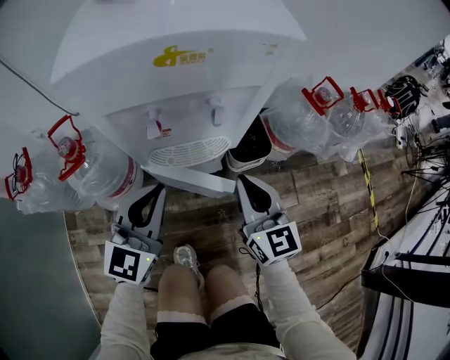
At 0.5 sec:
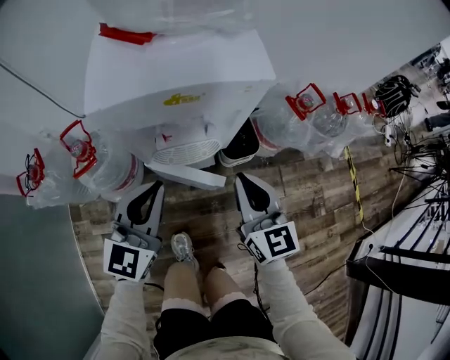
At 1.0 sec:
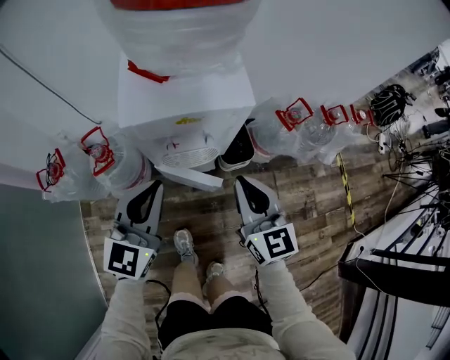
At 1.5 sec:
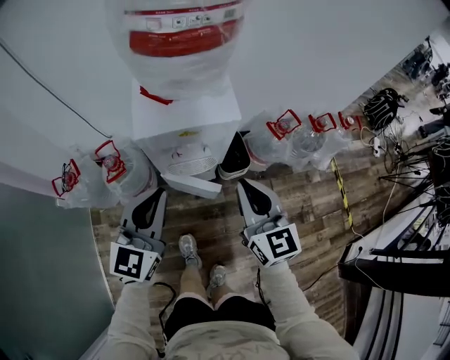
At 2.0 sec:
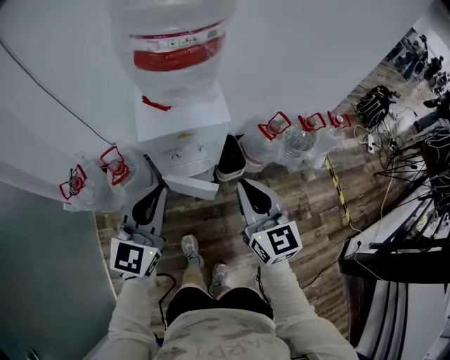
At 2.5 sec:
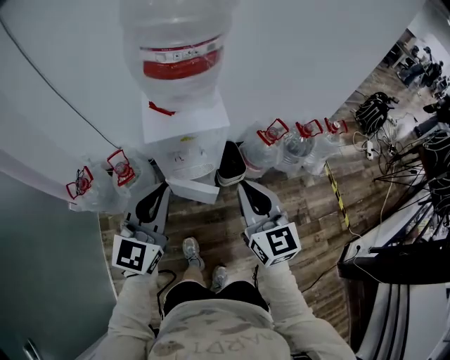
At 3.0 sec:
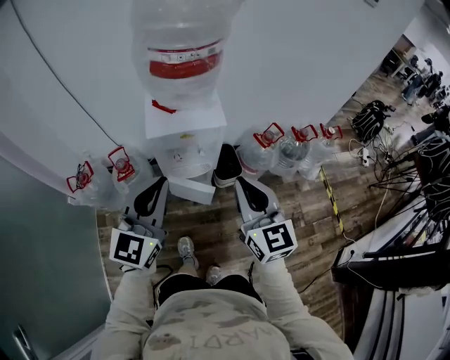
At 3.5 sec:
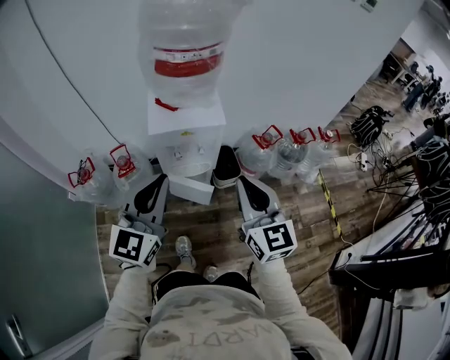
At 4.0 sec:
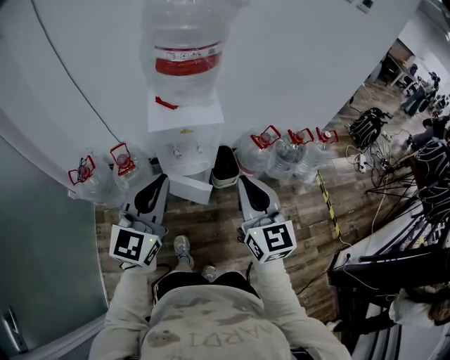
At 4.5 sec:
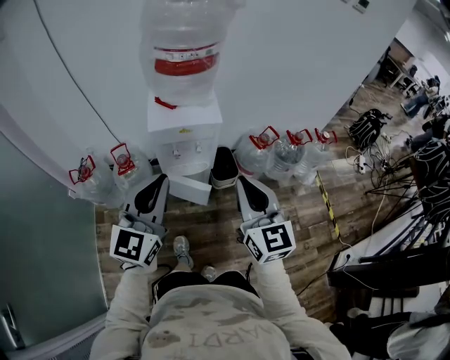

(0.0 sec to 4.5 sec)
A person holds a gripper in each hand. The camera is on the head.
0.0 sec - 2.0 sec: Both grippers travel together upward, approximately 40 cm.
2.0 sec - 4.5 sec: The grippers both shift backward and upward by approximately 15 cm.

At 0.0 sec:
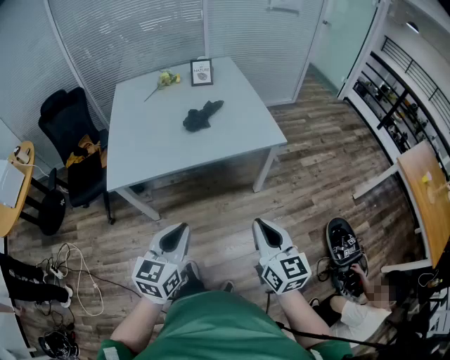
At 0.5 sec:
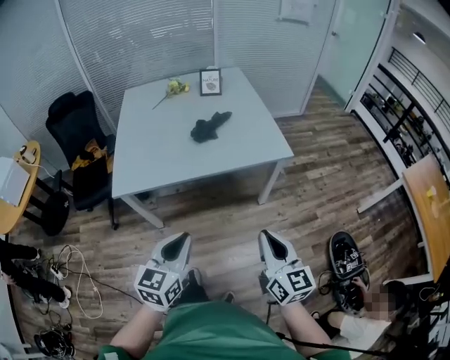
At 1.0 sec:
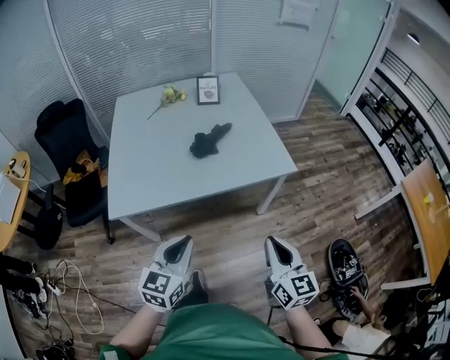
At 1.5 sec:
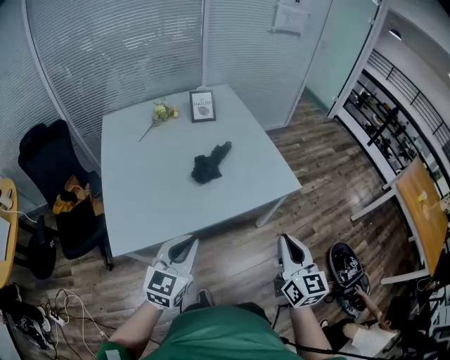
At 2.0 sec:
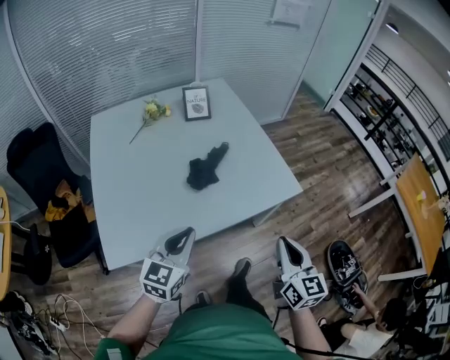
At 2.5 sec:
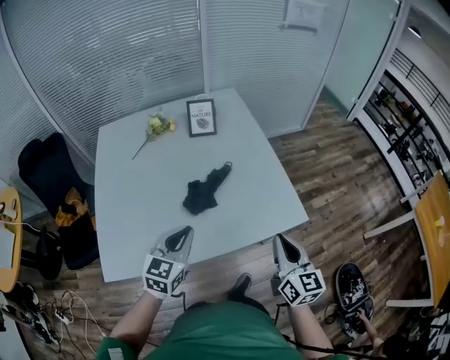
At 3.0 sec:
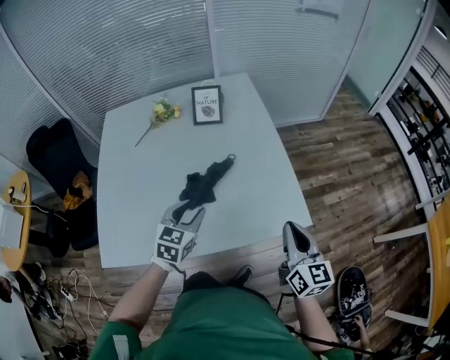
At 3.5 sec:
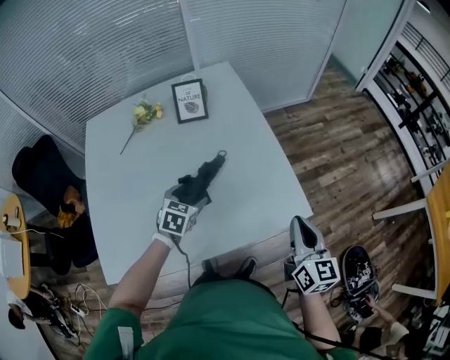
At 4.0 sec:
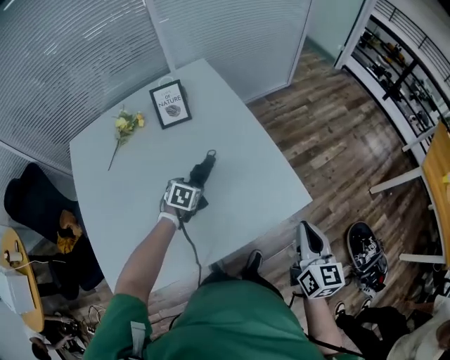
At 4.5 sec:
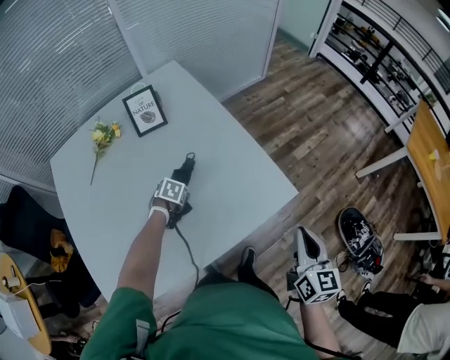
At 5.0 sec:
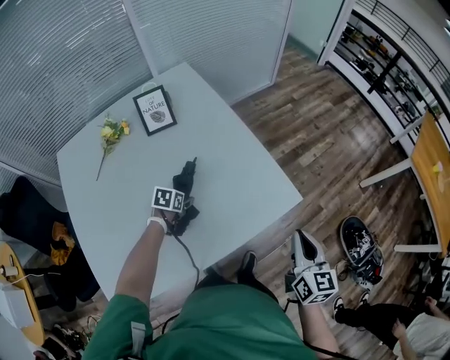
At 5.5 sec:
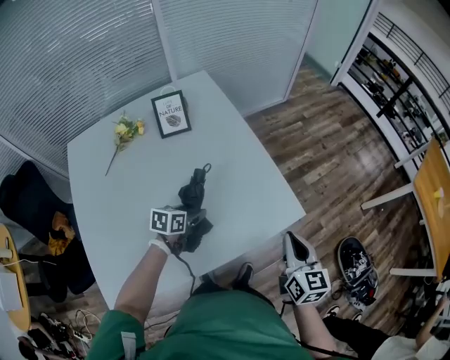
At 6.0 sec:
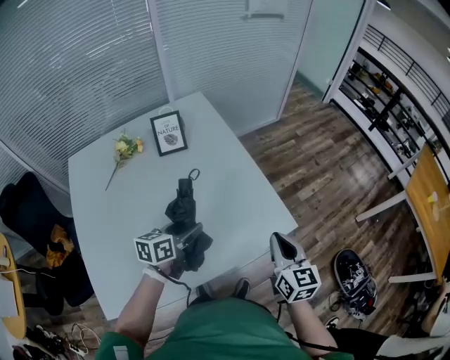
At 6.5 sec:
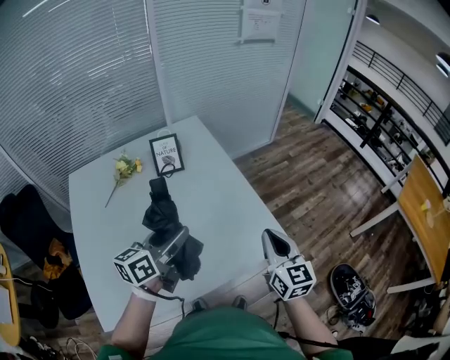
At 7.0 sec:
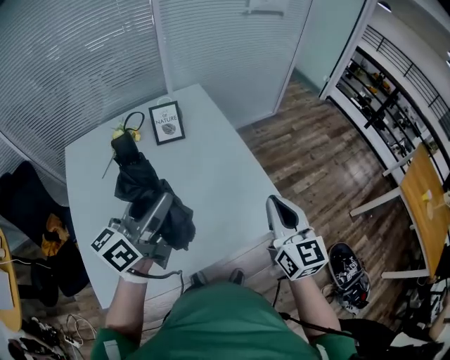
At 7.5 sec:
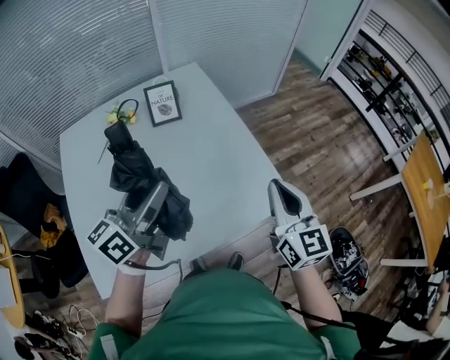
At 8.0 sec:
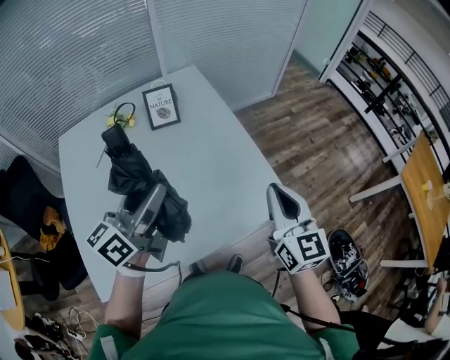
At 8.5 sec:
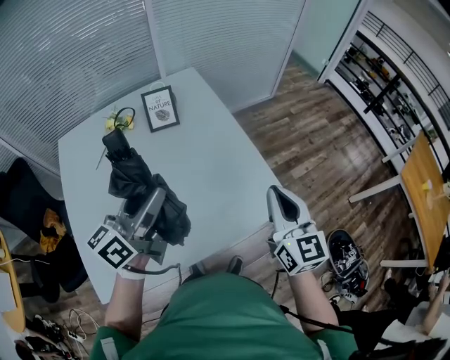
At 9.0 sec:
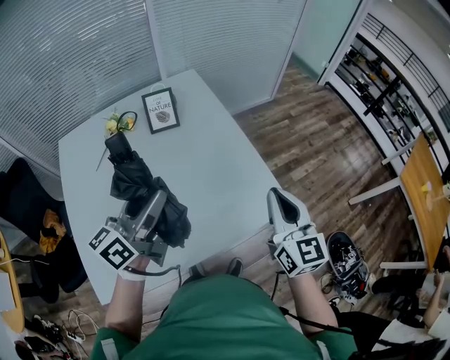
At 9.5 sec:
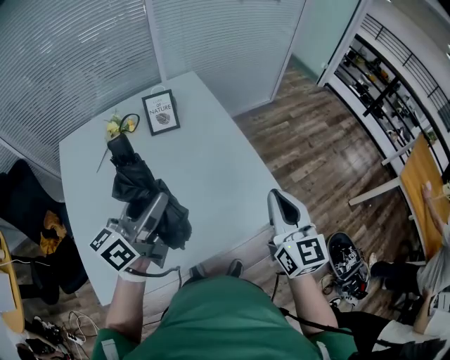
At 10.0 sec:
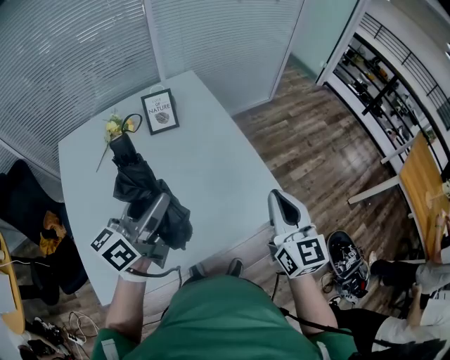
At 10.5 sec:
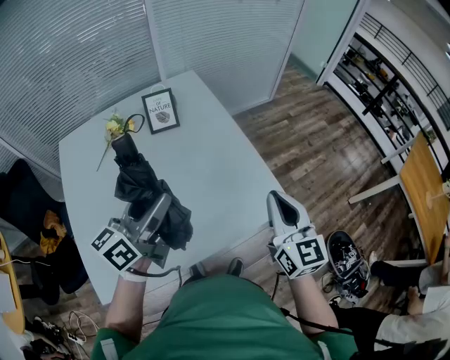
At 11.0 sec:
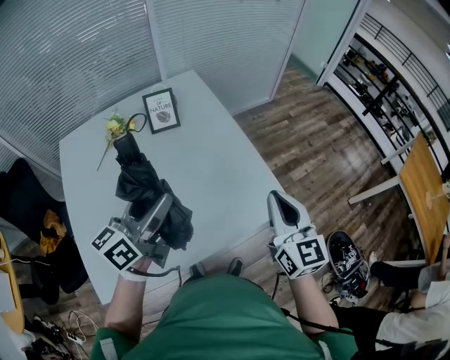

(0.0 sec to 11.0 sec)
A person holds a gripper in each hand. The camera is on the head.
0.0 sec - 2.0 sec: Both grippers travel together forward, about 30 cm.
2.0 sec - 3.5 sec: The right gripper travels forward and to the right by some 30 cm. The left gripper heads forward and downward, covering about 35 cm, tilts its fingers roughly 30 degrees downward, and opens up.
3.5 sec - 5.5 sec: The left gripper travels downward and back again, about 15 cm each way, and turns by approximately 30 degrees.
5.5 sec - 7.5 sec: The left gripper is displaced upward by about 30 cm, and points its fingers about 50 degrees further upward. The right gripper heads upward and to the left, covering roughly 15 cm.
7.5 sec - 9.0 sec: Both grippers stay put.
9.0 sec - 11.0 sec: Both grippers stay about where they are.

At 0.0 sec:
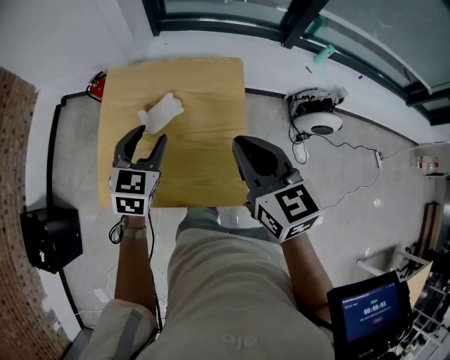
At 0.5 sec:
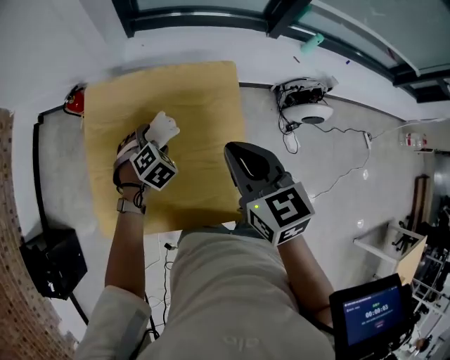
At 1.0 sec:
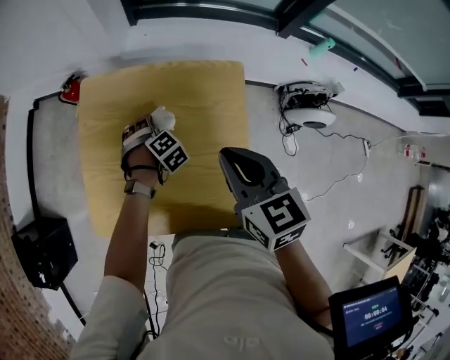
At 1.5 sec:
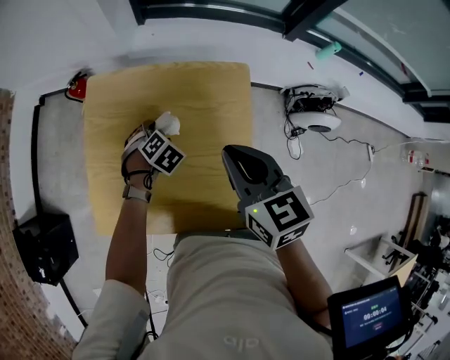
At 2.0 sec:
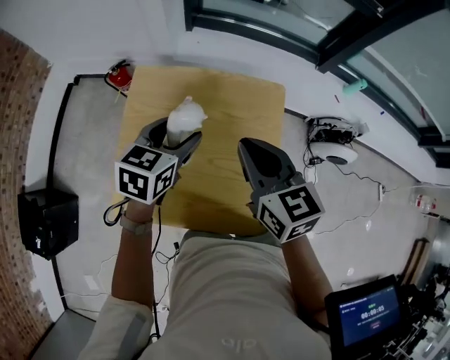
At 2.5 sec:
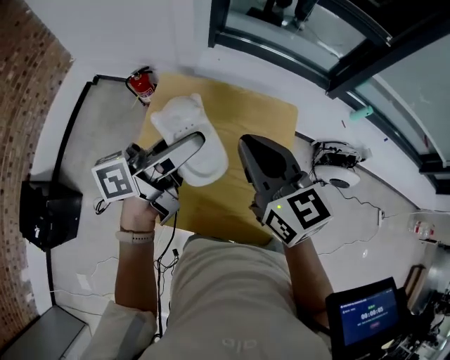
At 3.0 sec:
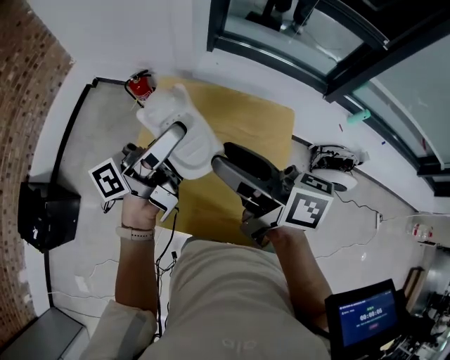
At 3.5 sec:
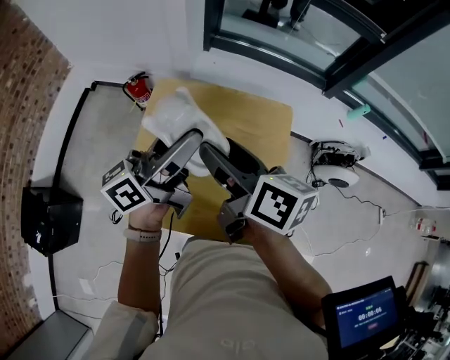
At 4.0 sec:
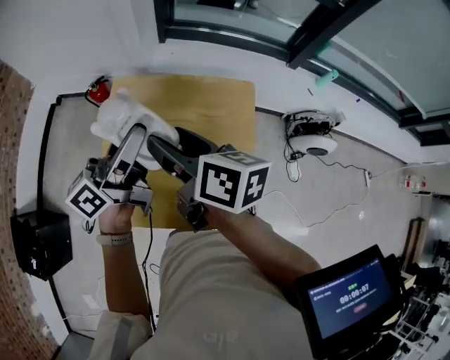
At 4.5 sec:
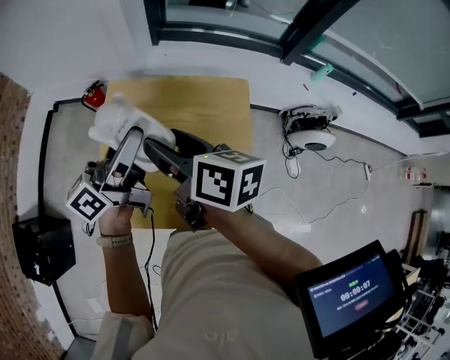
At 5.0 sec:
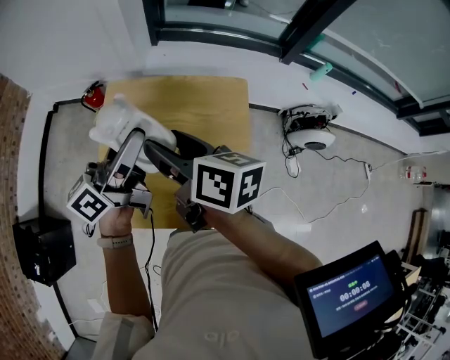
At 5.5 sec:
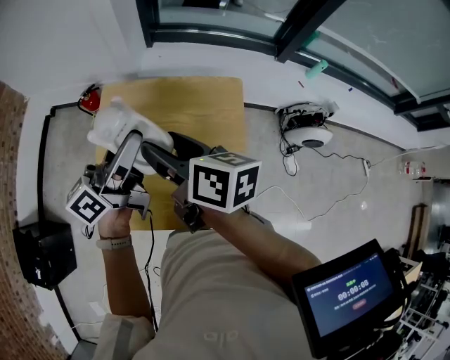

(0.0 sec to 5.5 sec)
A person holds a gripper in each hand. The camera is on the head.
0.0 sec - 2.0 sec: The left gripper goes some 10 cm forward, travels downward and back again, approximately 25 cm each way, changes its angle by approximately 20 degrees, and opens, then closes once more. Meanwhile the right gripper is displaced forward and to the left by about 15 cm.
2.0 sec - 3.5 sec: The right gripper goes approximately 10 cm to the left and upward, turns by some 40 degrees, and opens, while the left gripper travels upward by roughly 15 cm, and angles its fingers upward, by approximately 50 degrees.
3.5 sec - 5.5 sec: The grippers make only small movements.

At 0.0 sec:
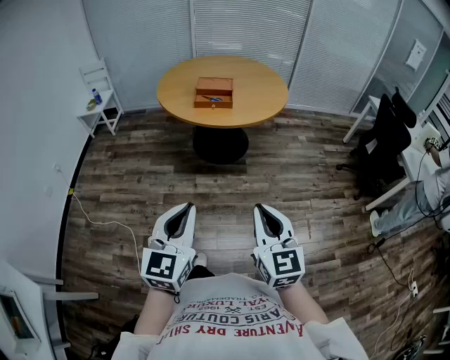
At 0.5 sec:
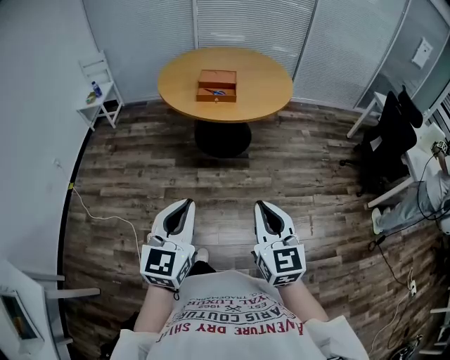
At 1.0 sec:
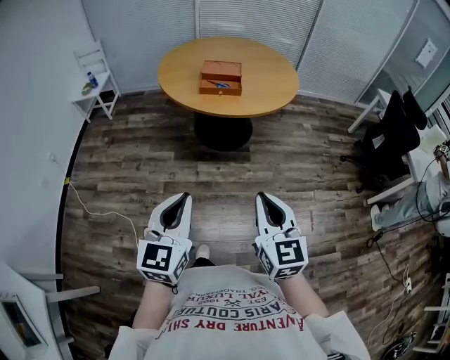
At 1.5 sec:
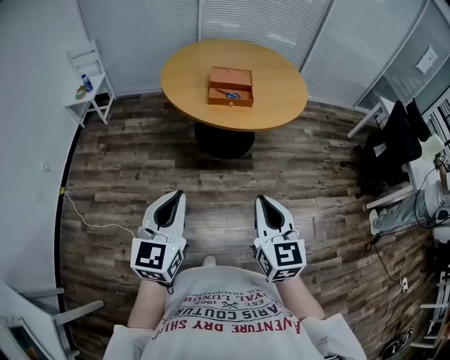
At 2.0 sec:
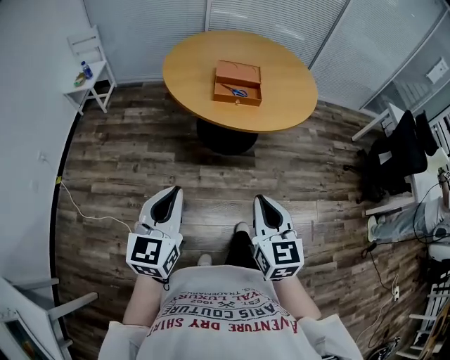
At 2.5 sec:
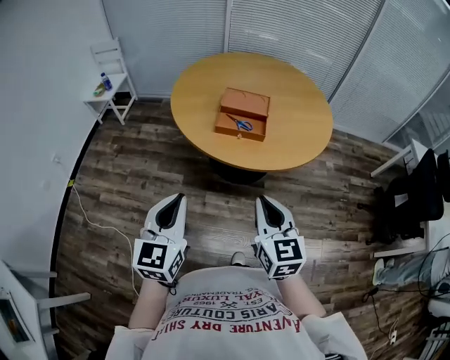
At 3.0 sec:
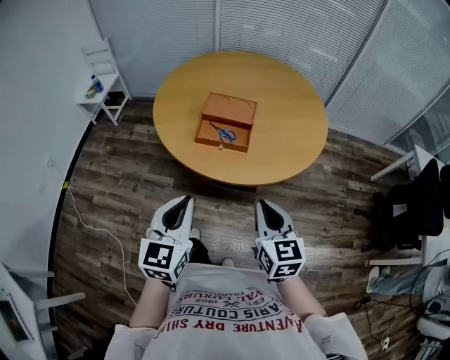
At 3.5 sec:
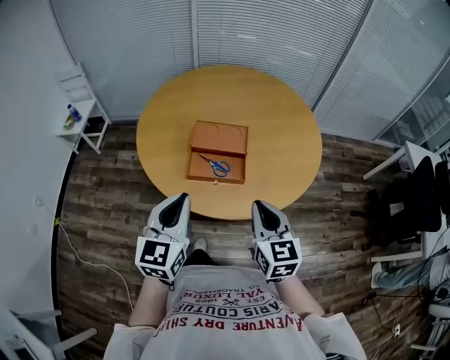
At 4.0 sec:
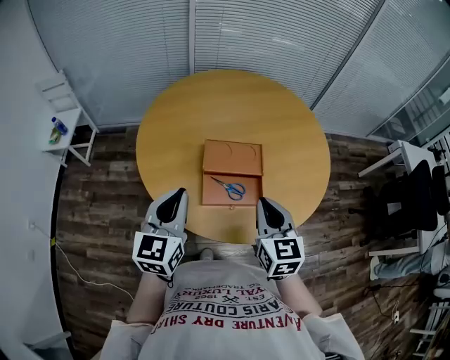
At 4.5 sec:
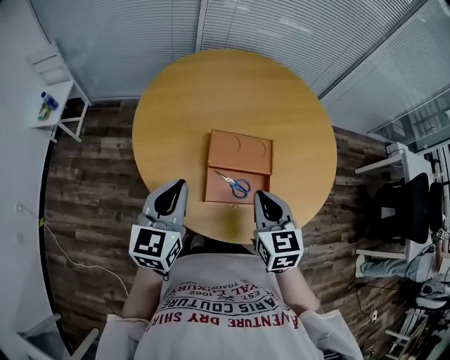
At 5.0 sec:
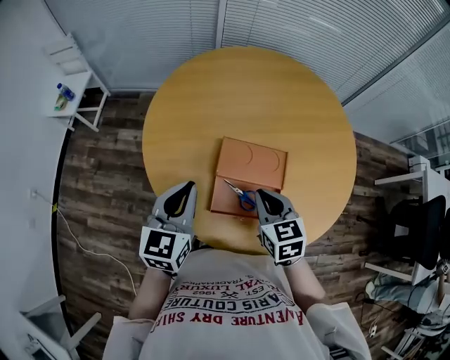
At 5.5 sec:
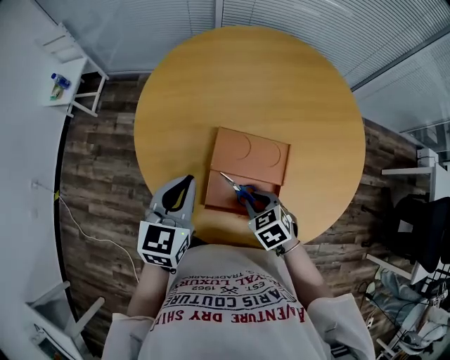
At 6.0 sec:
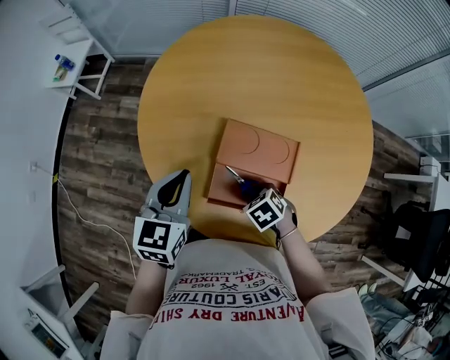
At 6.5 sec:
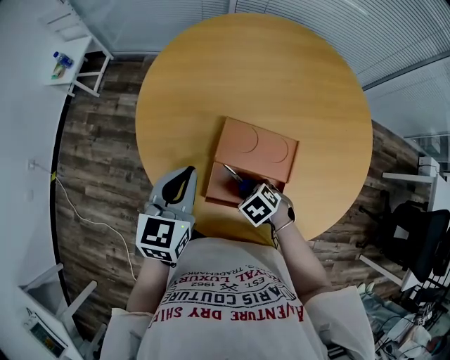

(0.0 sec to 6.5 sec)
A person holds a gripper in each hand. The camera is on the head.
0.0 sec - 2.0 sec: Both grippers move forward and to the left, some 30 cm.
2.0 sec - 4.5 sec: Both grippers are carried forward, approximately 60 cm.
4.5 sec - 6.5 sec: The left gripper changes place by roughly 10 cm; the right gripper travels downward by roughly 25 cm, angles its fingers downward, by approximately 50 degrees, and opens.
